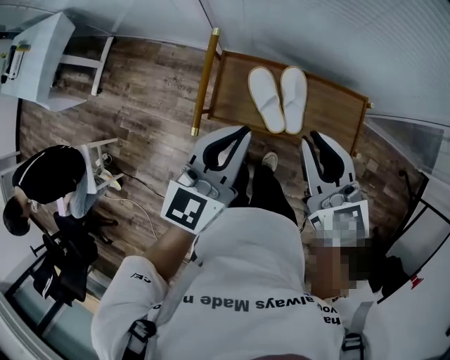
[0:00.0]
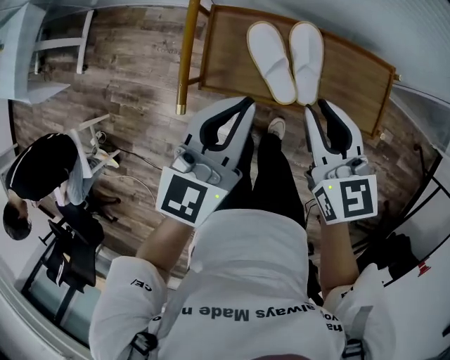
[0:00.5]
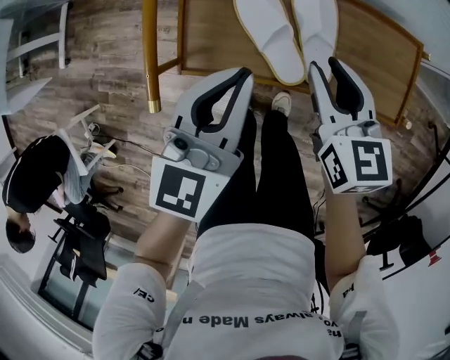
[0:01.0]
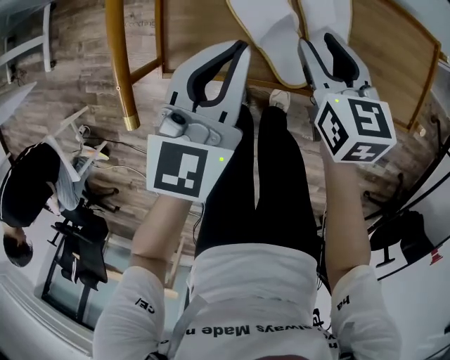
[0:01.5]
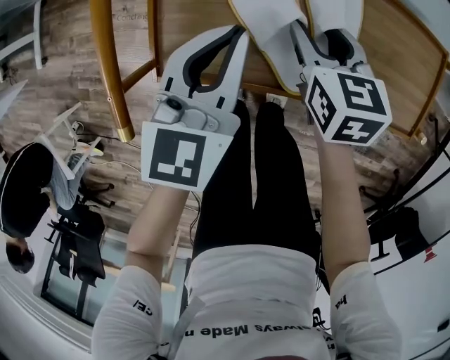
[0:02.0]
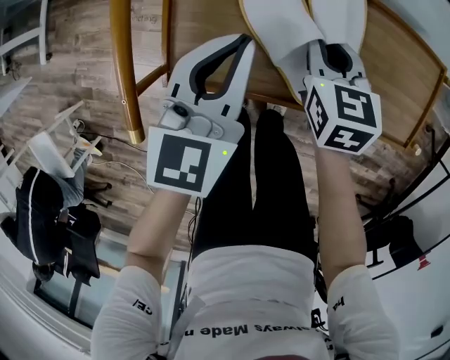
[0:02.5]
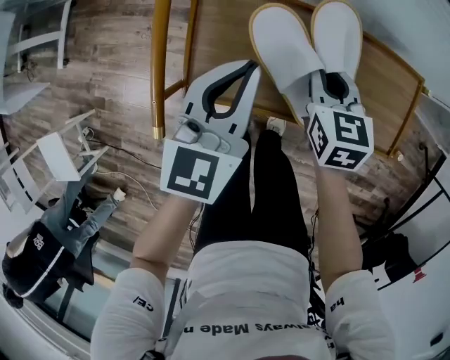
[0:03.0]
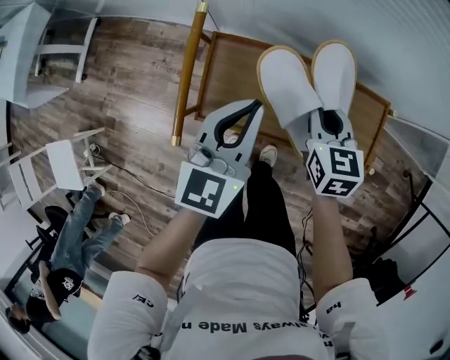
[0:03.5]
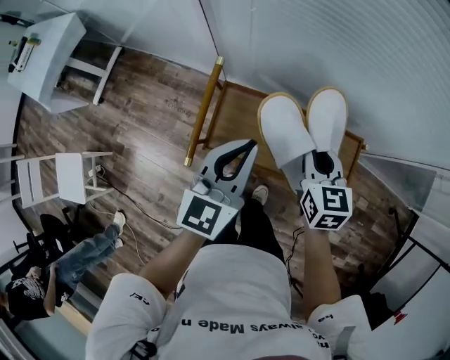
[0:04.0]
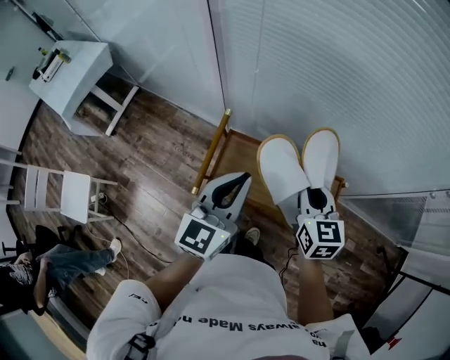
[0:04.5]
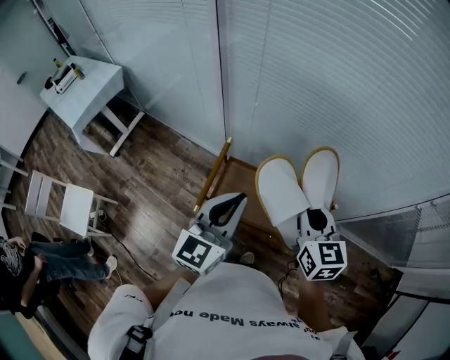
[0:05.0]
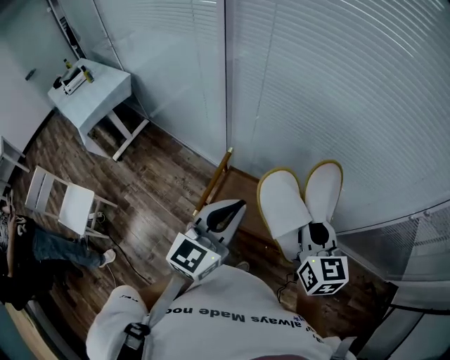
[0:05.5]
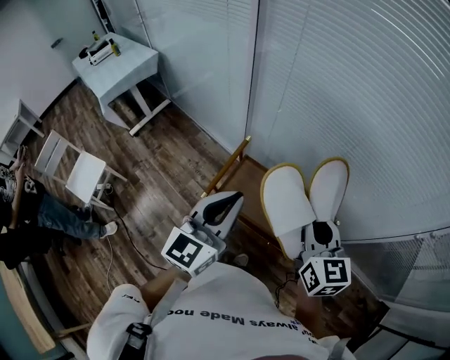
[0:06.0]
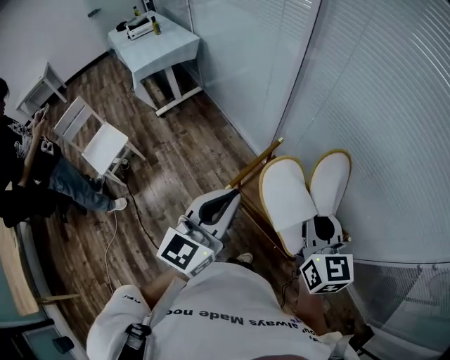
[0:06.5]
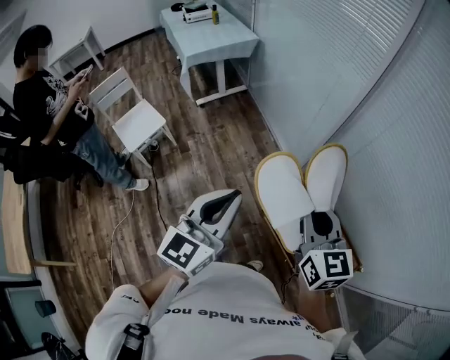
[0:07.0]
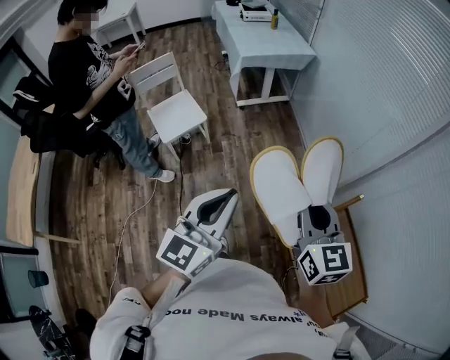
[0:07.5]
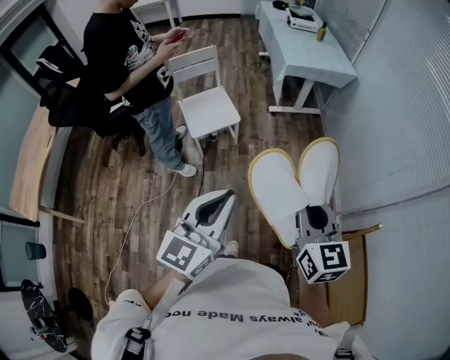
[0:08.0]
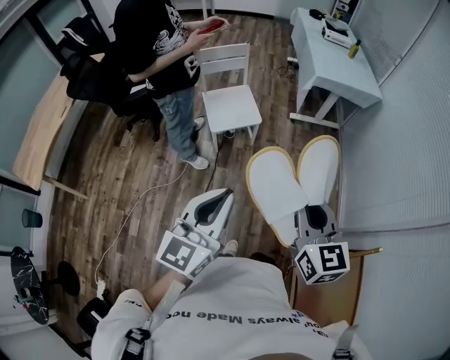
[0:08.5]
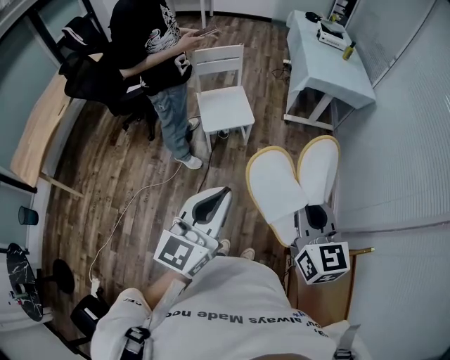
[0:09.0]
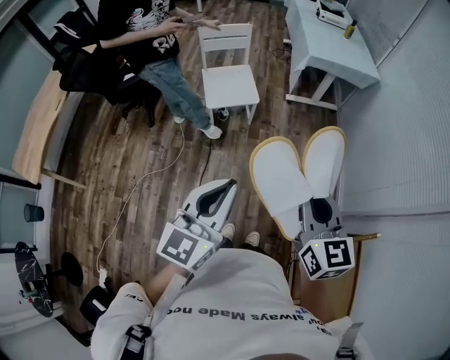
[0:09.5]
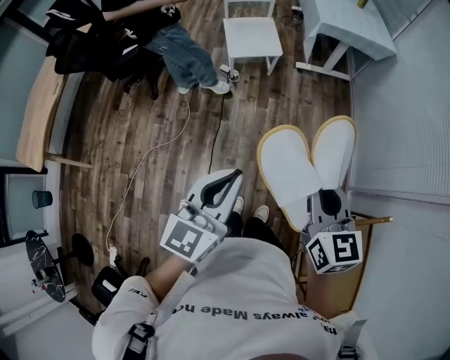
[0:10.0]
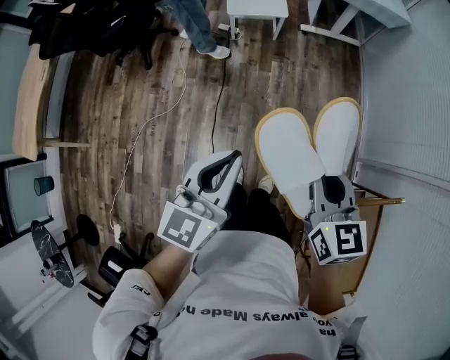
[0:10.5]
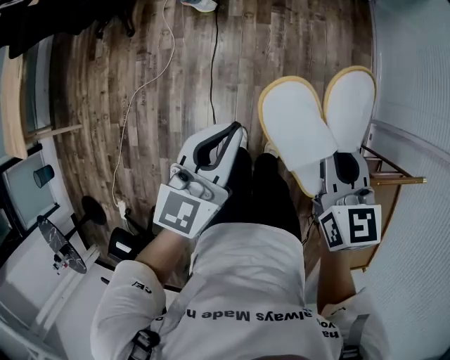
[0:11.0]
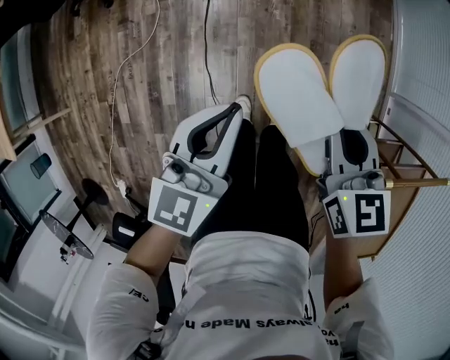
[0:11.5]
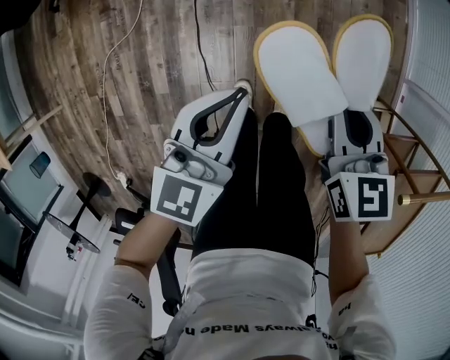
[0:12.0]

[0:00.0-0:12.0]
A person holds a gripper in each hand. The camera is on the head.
0:00.0 to 0:02.0: The grippers both shift downward by roughly 35 cm. The right gripper turns by approximately 30 degrees, and opens.
0:02.0 to 0:04.0: The two grippers go about 30 cm upward. The right gripper closes.
0:04.0 to 0:06.0: The left gripper shifts approximately 25 cm upward and backward; the right gripper shifts about 25 cm upward, and changes its angle by roughly 20 degrees.
0:06.0 to 0:08.0: The pair of grippers is taken roughly 60 cm. The right gripper swivels roughly 50 degrees, while the left gripper swivels some 50 degrees.
0:08.0 to 0:10.0: Both grippers travel together downward, roughly 5 cm.
0:10.0 to 0:12.0: The two grippers go roughly 40 cm downward.

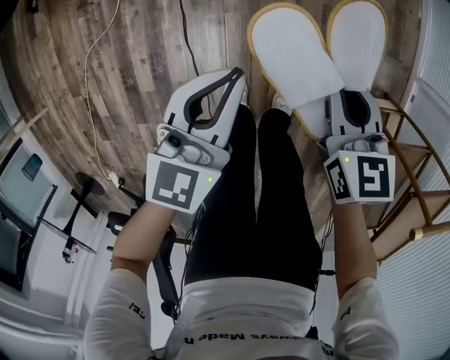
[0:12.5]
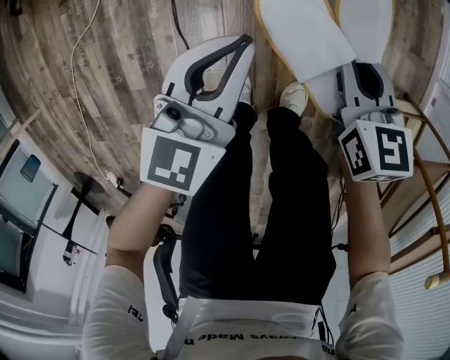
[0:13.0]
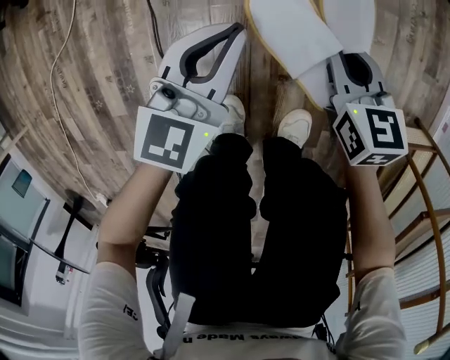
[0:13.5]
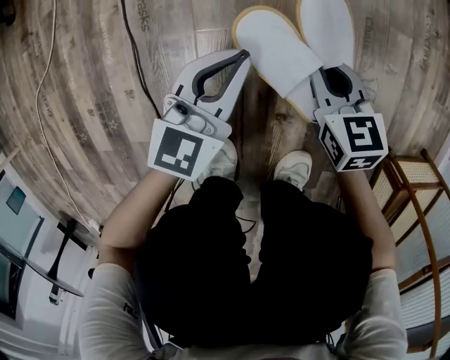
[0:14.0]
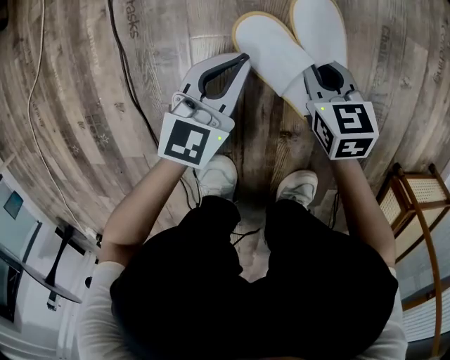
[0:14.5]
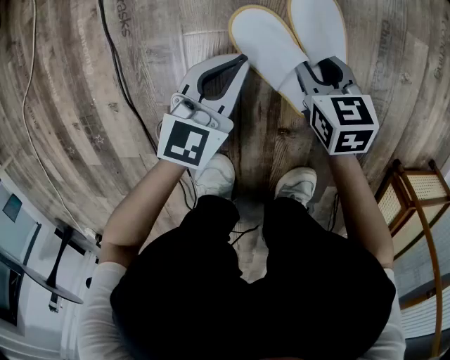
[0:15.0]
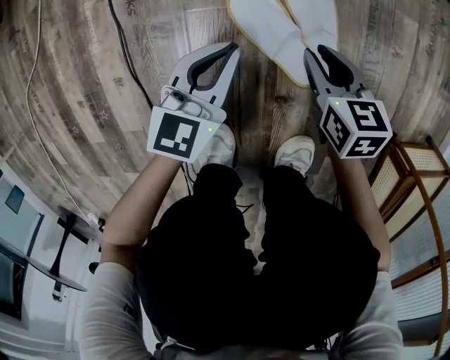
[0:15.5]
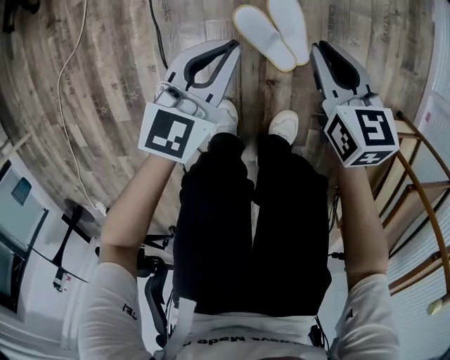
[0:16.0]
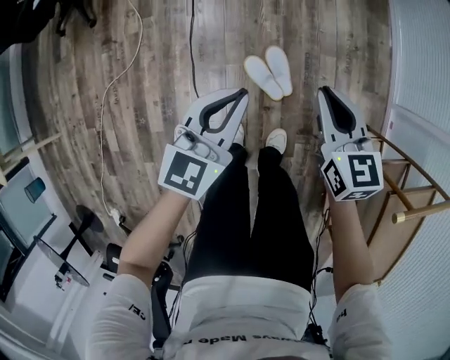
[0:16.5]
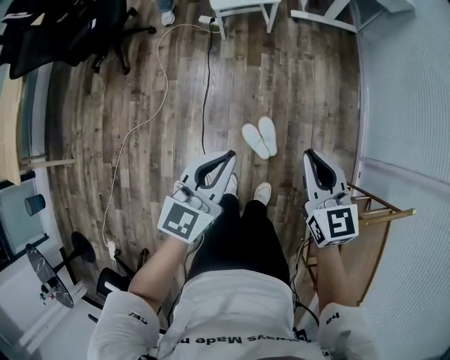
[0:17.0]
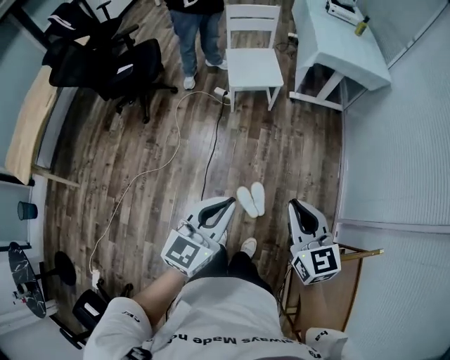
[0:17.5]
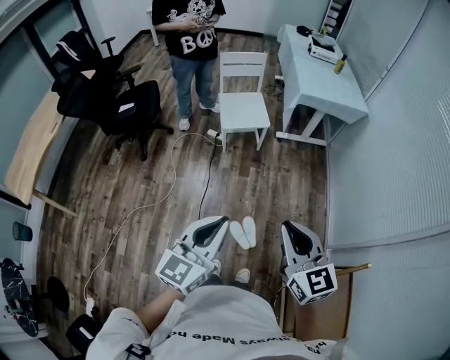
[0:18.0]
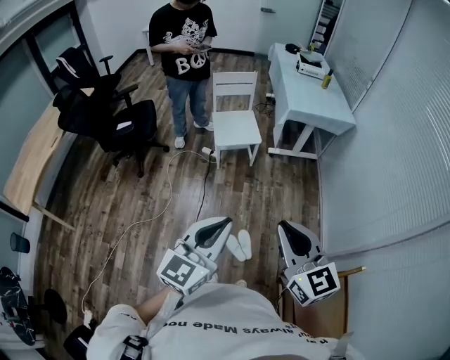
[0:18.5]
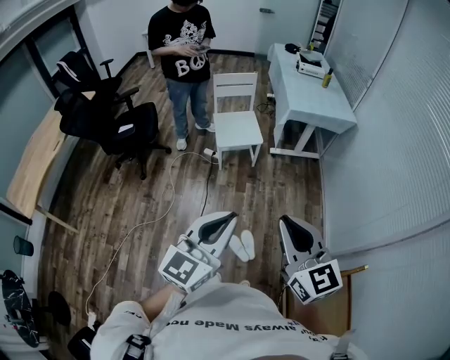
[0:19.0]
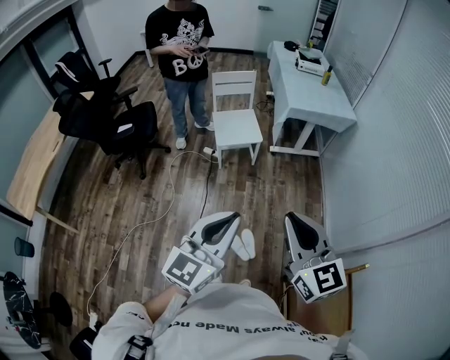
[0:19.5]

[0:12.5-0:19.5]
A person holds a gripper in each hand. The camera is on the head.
0:12.5 to 0:14.5: The grippers both shift downward by roughly 60 cm.
0:14.5 to 0:16.0: Both grippers travel together upward, roughly 30 cm.
0:16.0 to 0:17.5: The two grippers go about 70 cm upward. The right gripper swivels some 20 degrees.
0:17.5 to 0:19.5: The grippers both shift upward by approximately 20 cm.

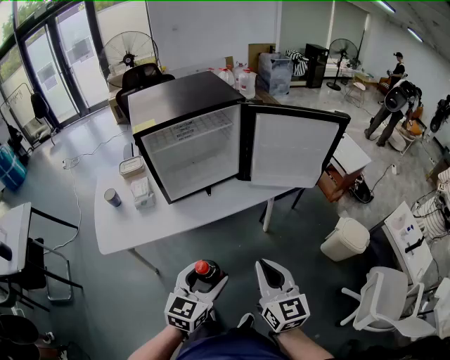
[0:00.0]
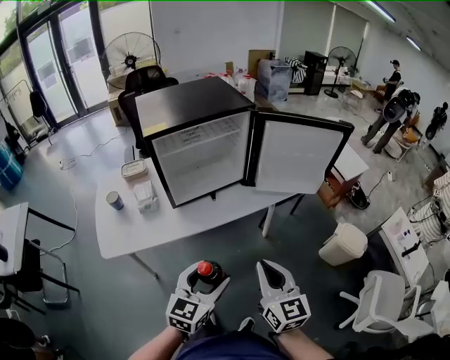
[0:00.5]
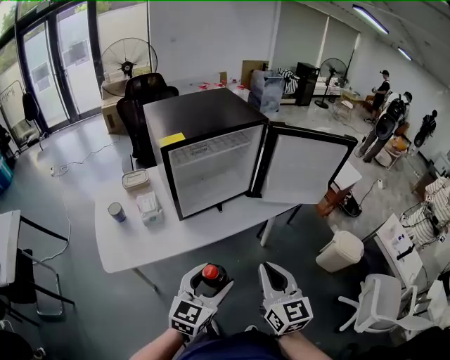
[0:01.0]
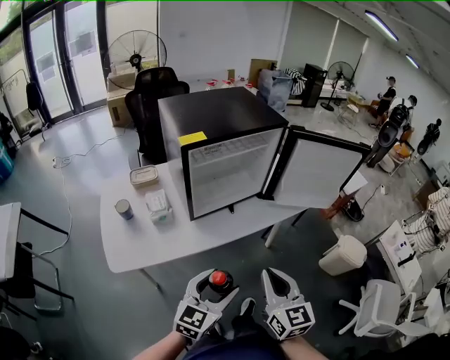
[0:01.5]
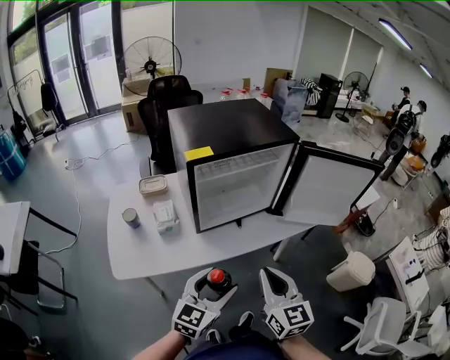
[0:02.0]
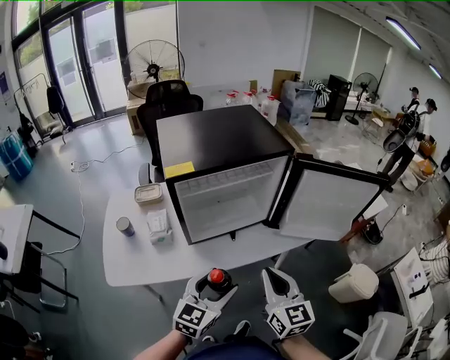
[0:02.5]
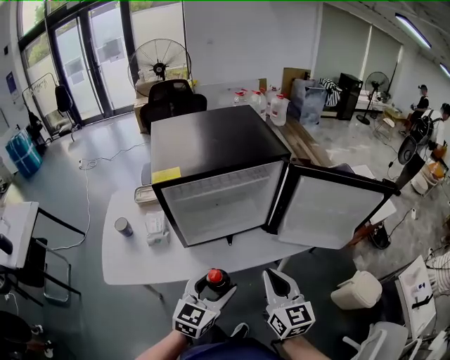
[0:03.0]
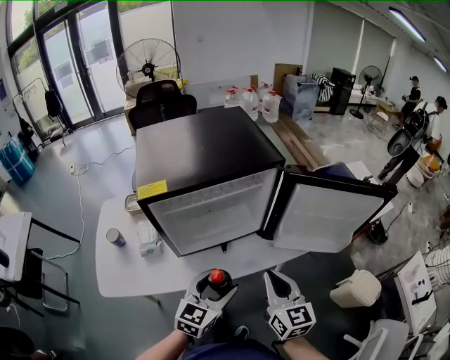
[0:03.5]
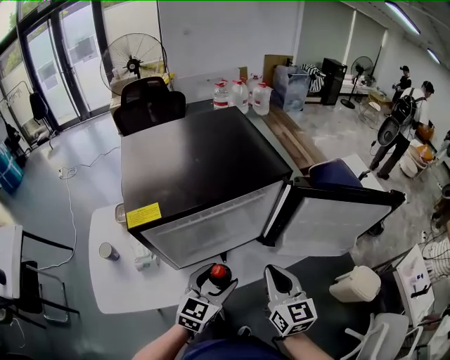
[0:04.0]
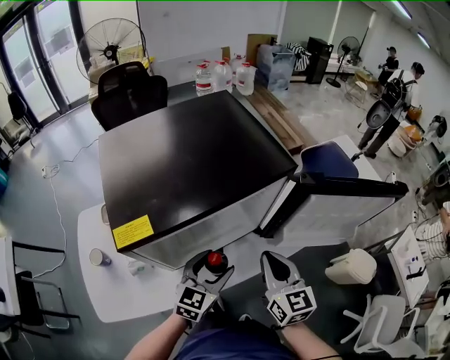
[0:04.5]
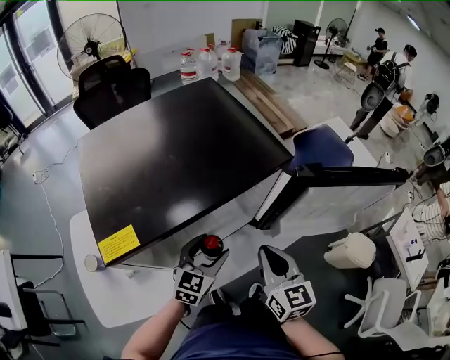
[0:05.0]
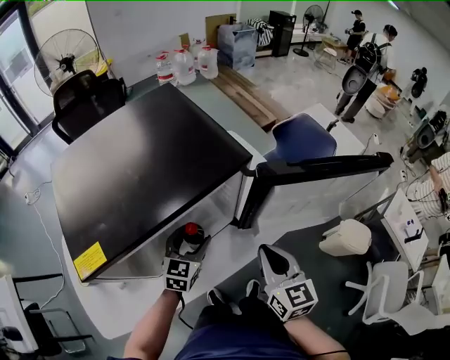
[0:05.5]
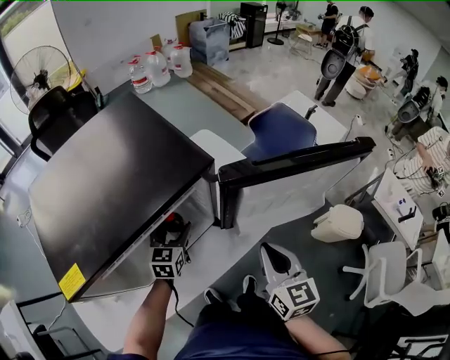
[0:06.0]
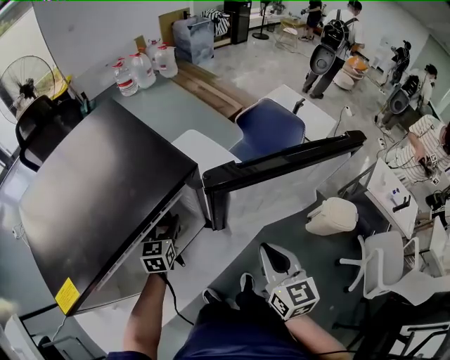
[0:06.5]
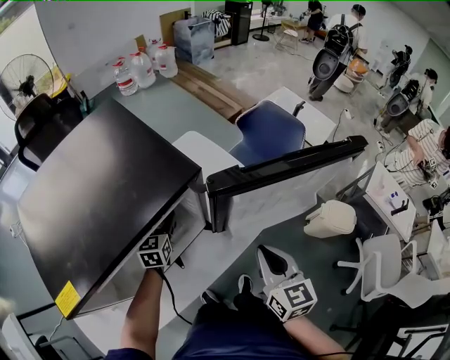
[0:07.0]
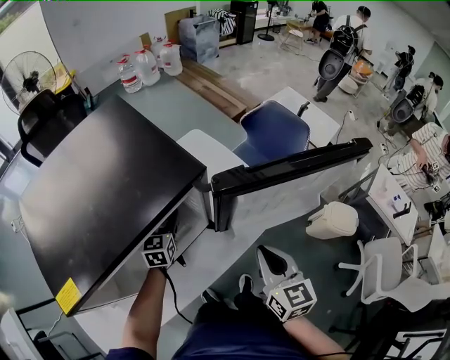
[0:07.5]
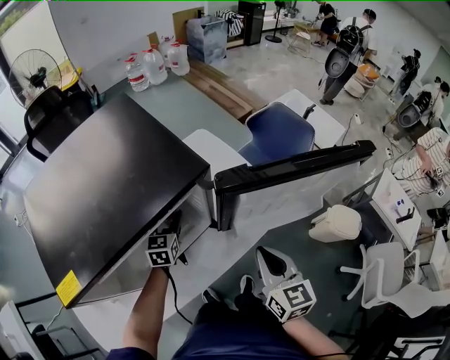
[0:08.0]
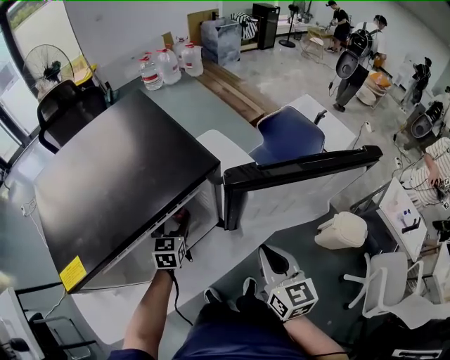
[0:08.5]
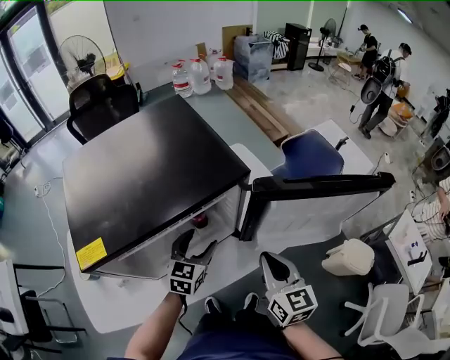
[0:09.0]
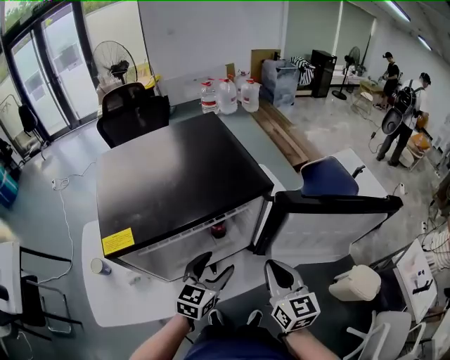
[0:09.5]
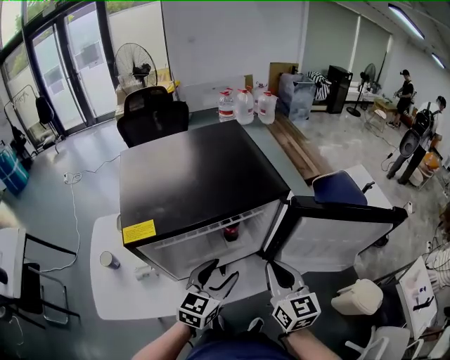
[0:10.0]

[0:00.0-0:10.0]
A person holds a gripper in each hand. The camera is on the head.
0:00.0 to 0:02.0: Both grippers move to the left and forward, about 15 cm.
0:02.0 to 0:04.0: The right gripper travels forward and to the right by approximately 25 cm. Meanwhile the left gripper is displaced forward by approximately 20 cm.
0:04.0 to 0:06.0: The left gripper moves forward and downward, about 25 cm. Meanwhile the right gripper heads to the right and forward, covering some 10 cm.
0:06.0 to 0:08.0: The left gripper shifts by some 5 cm.
0:08.0 to 0:10.0: The left gripper goes roughly 25 cm backward and upward, while the right gripper heads to the left and upward, covering about 10 cm, and changes its angle by some 20 degrees.
